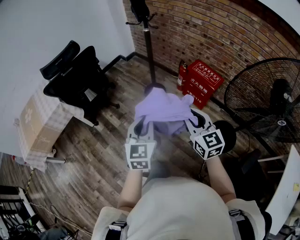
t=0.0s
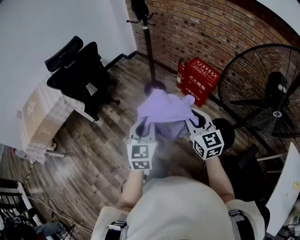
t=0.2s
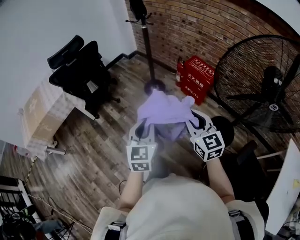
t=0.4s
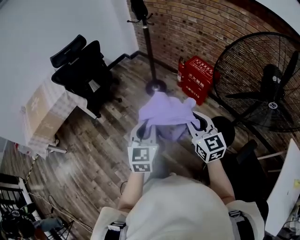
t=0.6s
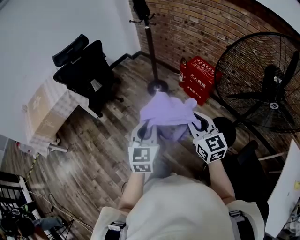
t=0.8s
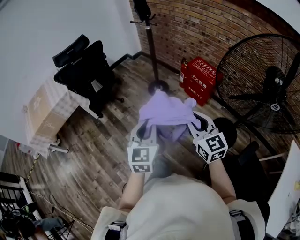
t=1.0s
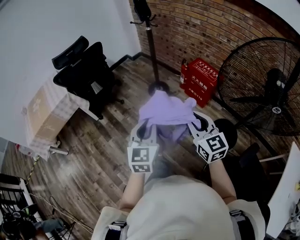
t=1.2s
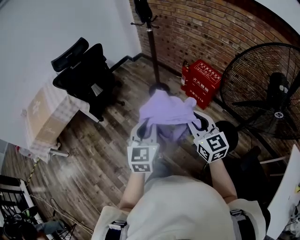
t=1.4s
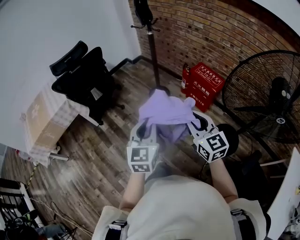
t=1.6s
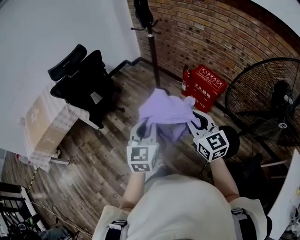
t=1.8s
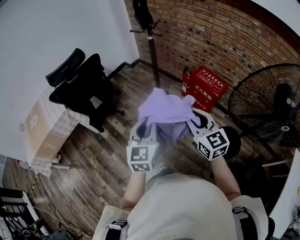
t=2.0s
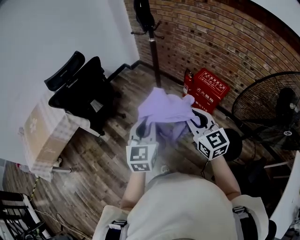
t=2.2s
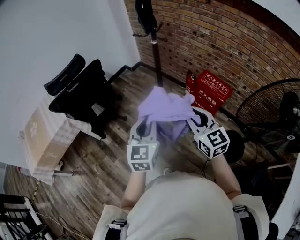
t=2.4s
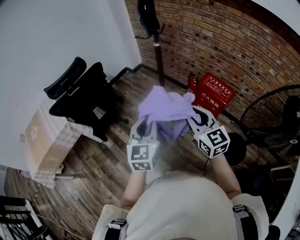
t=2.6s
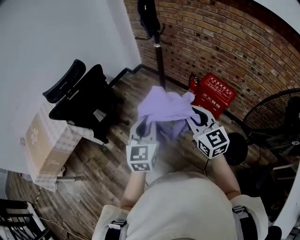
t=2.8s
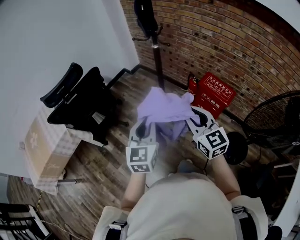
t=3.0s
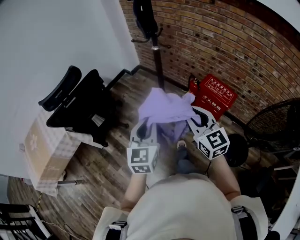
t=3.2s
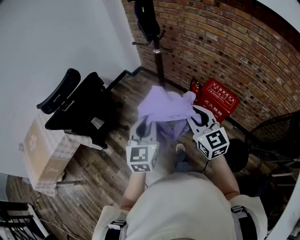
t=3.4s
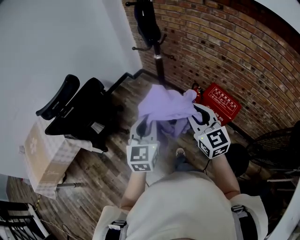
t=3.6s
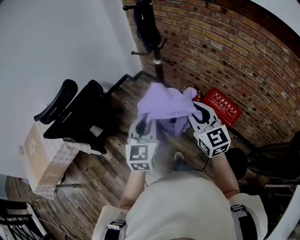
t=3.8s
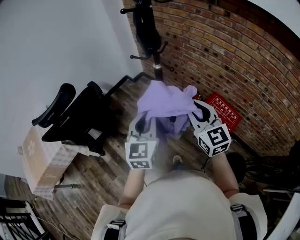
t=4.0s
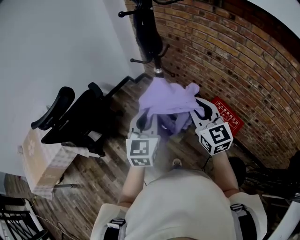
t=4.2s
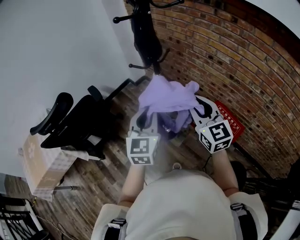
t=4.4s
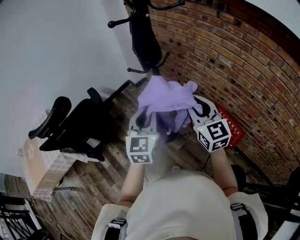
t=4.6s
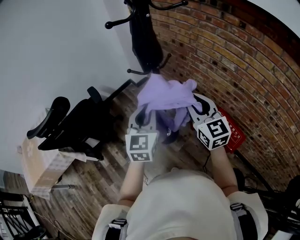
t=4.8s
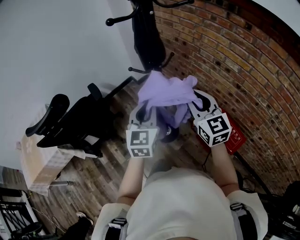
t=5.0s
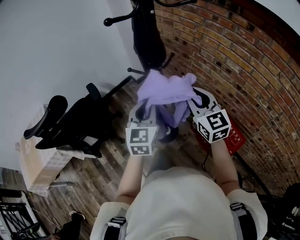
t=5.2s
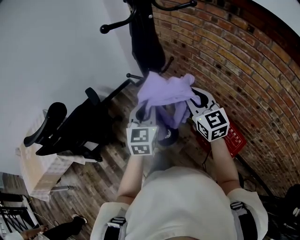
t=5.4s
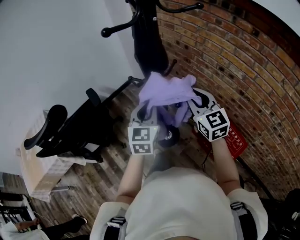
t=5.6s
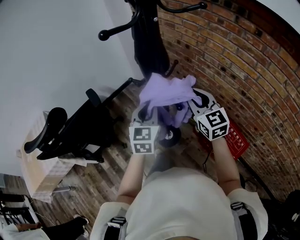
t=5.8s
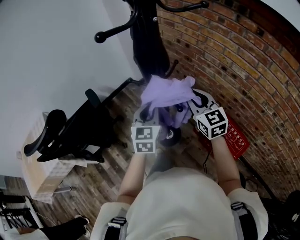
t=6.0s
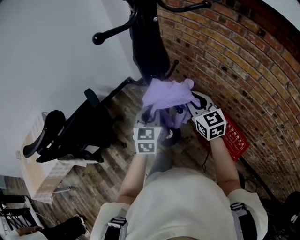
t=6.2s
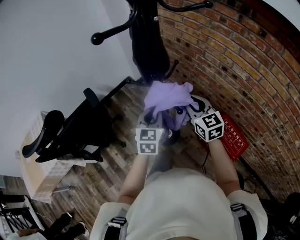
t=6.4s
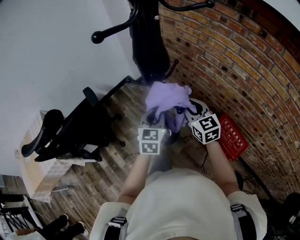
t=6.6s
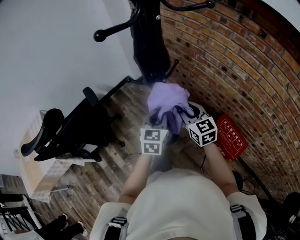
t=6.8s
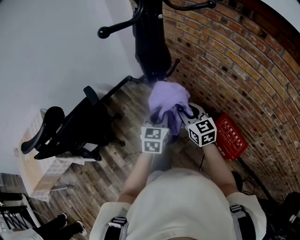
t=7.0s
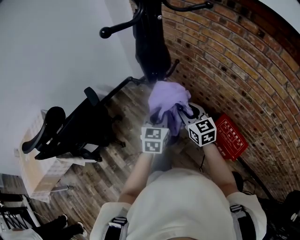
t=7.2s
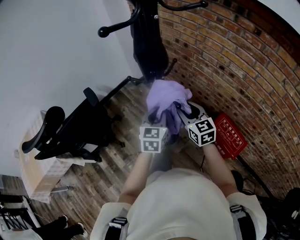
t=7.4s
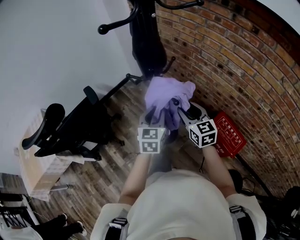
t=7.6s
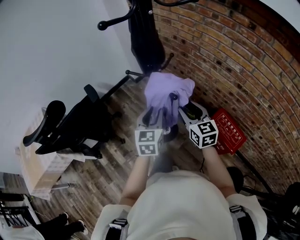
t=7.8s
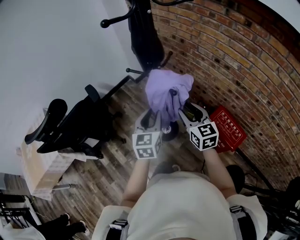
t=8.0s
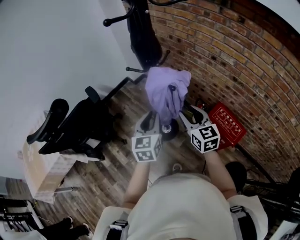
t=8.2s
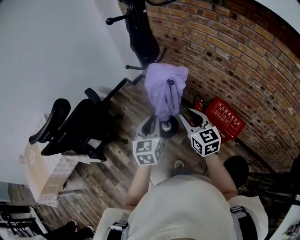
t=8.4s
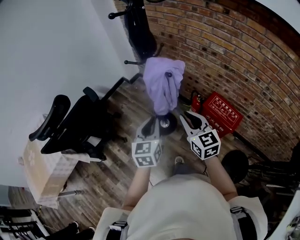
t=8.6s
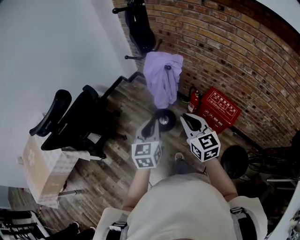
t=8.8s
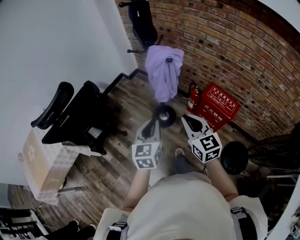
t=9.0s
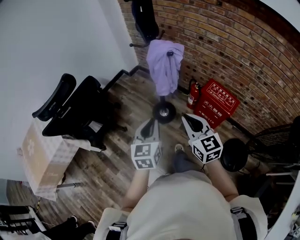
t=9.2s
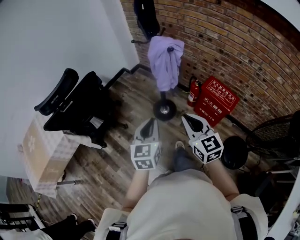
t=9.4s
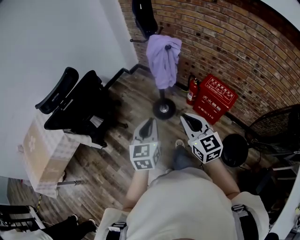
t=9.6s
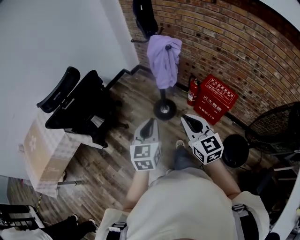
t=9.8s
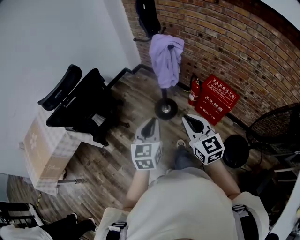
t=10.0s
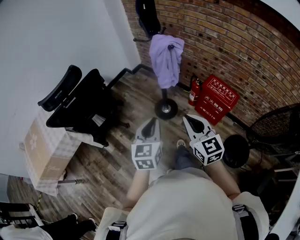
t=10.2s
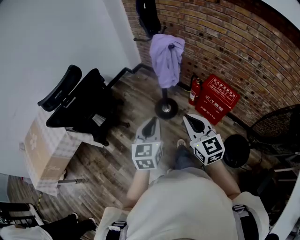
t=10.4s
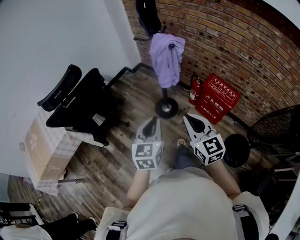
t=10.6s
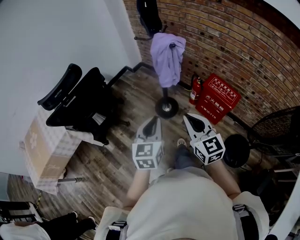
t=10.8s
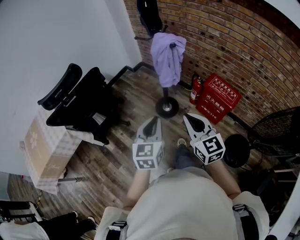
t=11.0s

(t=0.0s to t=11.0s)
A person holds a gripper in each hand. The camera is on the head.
t=0.0s - t=1.6s: Both grippers travel together backward, approximately 5 cm.
t=1.6s - t=3.2s: The grippers both shift forward by approximately 25 cm.
t=3.2s - t=4.8s: Both grippers move forward, roughly 30 cm.
t=4.8s - t=6.2s: The two grippers go about 15 cm forward and downward.
t=6.2s - t=7.8s: The two grippers go about 5 cm backward. The right gripper opens up.
t=7.8s - t=9.4s: The grippers both shift backward by some 30 cm. The right gripper closes.
t=9.4s - t=11.0s: The grippers make only small movements.

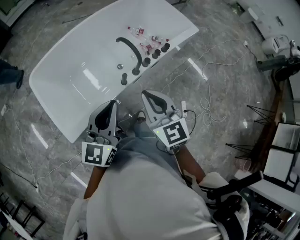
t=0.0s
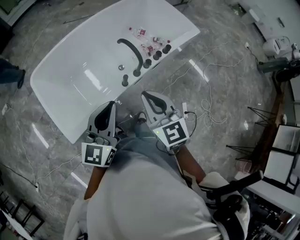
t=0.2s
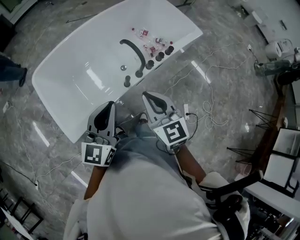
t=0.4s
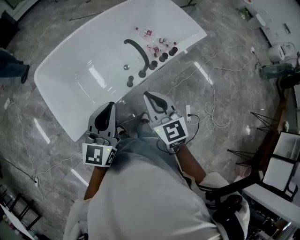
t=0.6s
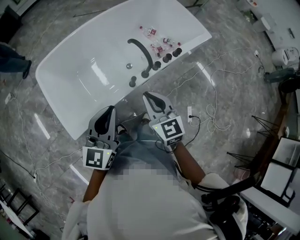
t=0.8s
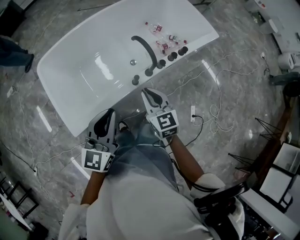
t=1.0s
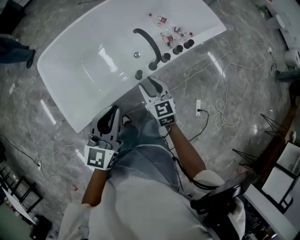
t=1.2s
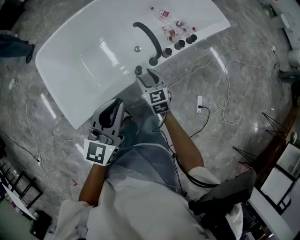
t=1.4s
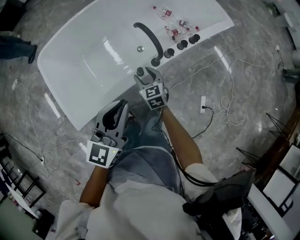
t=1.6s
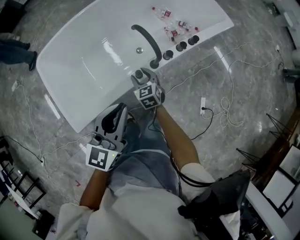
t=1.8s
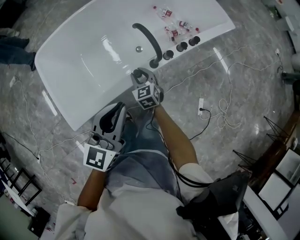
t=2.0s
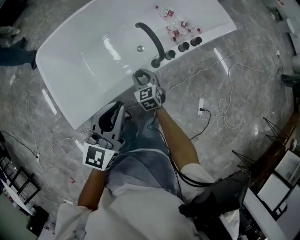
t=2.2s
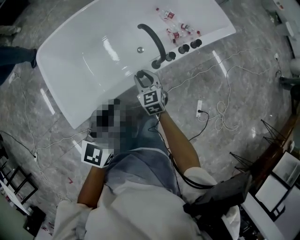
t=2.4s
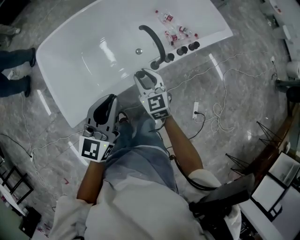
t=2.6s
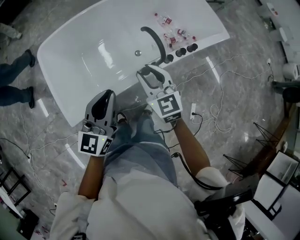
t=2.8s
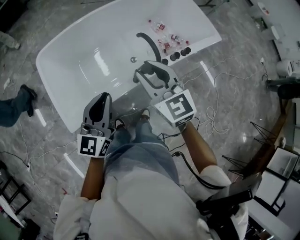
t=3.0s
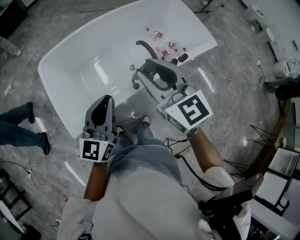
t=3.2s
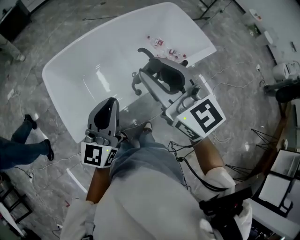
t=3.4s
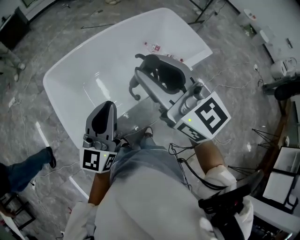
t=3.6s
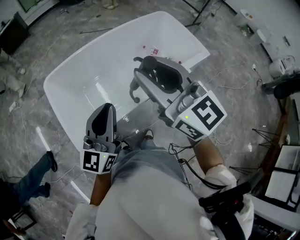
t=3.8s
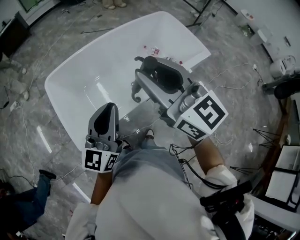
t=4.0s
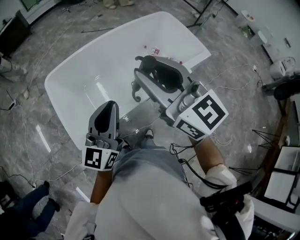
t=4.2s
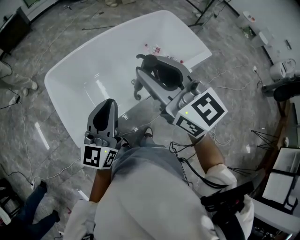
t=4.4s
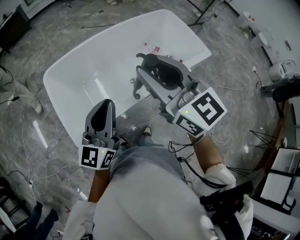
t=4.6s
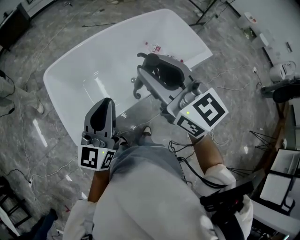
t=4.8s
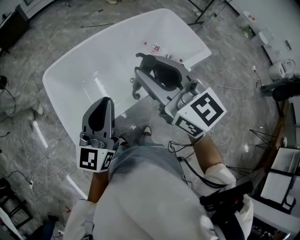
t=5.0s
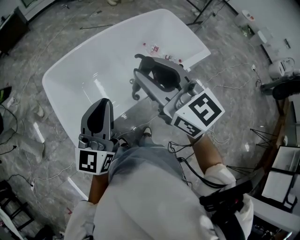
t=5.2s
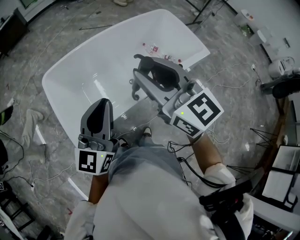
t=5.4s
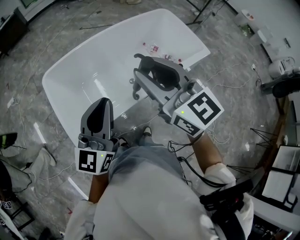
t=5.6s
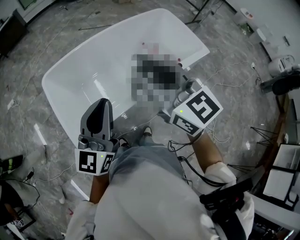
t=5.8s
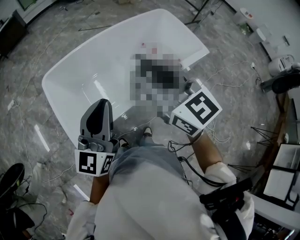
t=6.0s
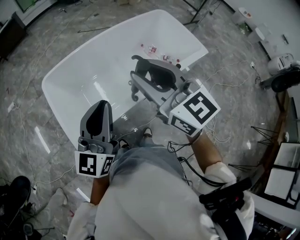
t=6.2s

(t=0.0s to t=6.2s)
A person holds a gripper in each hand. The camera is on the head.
t=0.0s - t=1.6s: The right gripper travels downward and forward by roughly 50 cm, changes its angle by roughly 20 degrees, and opens its fingers. Meanwhile the left gripper shifts approximately 25 cm downward and forward.
t=1.6s - t=3.2s: The left gripper heads upward, to the left and backward, covering roughly 20 cm; the right gripper shifts about 50 cm upward, and rotates some 30 degrees.
t=3.2s - t=4.6s: The two grippers go some 15 cm upward.
t=4.6s - t=6.2s: There are only small adjustments of the grippers.

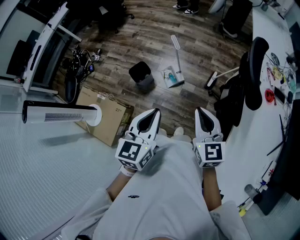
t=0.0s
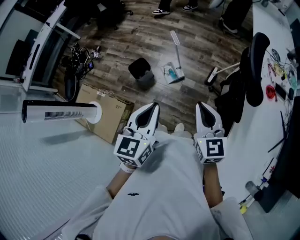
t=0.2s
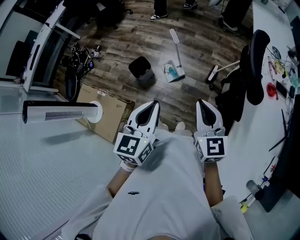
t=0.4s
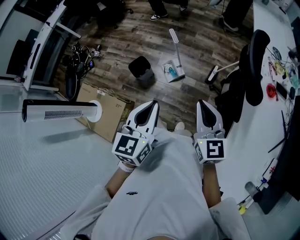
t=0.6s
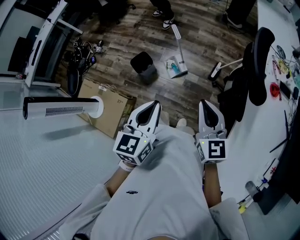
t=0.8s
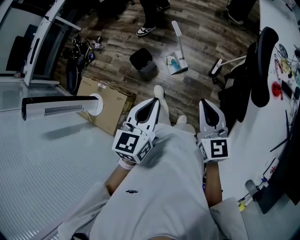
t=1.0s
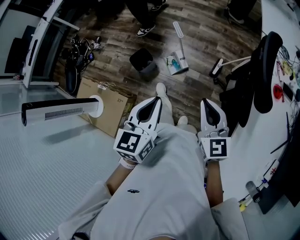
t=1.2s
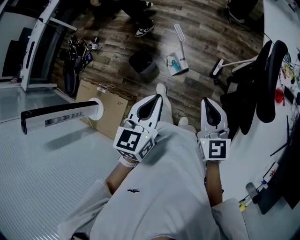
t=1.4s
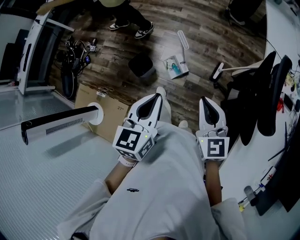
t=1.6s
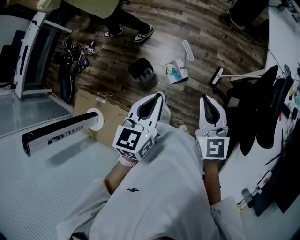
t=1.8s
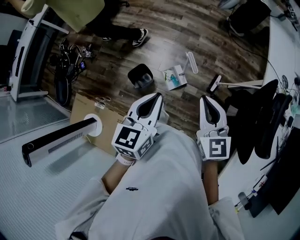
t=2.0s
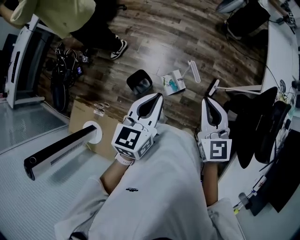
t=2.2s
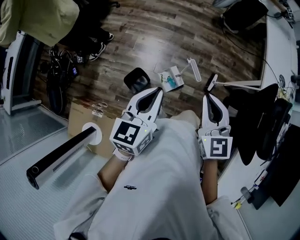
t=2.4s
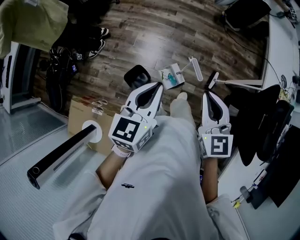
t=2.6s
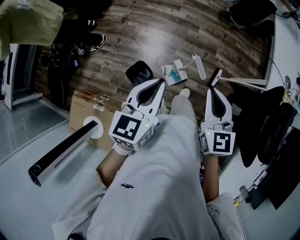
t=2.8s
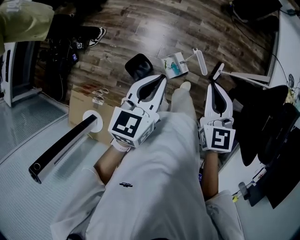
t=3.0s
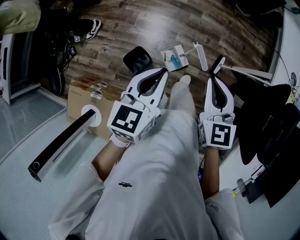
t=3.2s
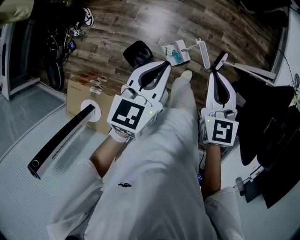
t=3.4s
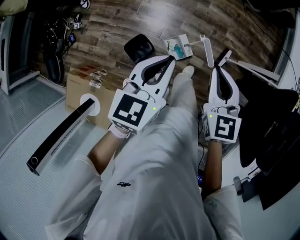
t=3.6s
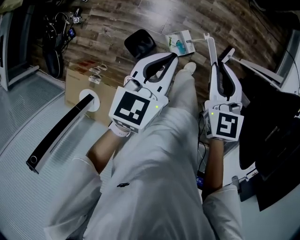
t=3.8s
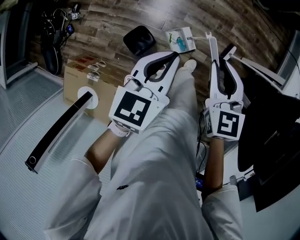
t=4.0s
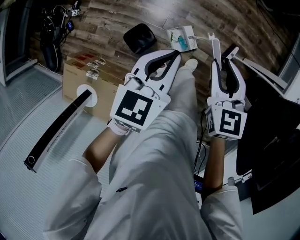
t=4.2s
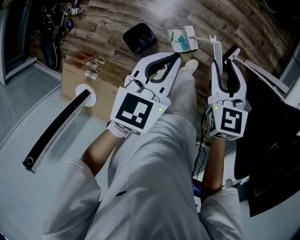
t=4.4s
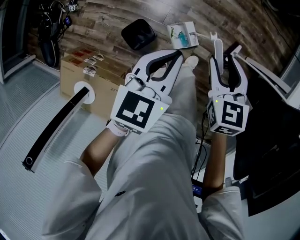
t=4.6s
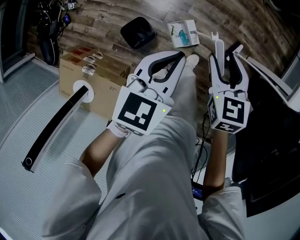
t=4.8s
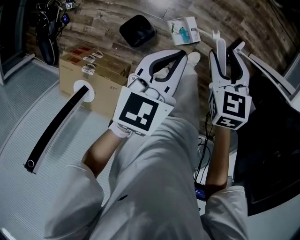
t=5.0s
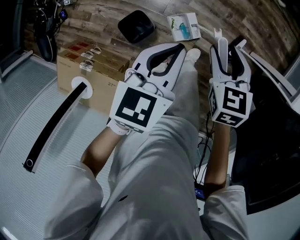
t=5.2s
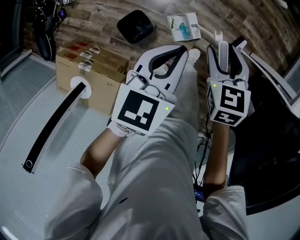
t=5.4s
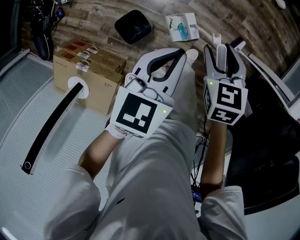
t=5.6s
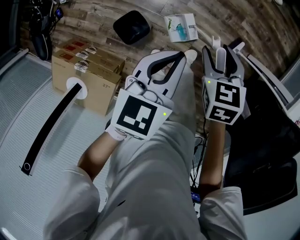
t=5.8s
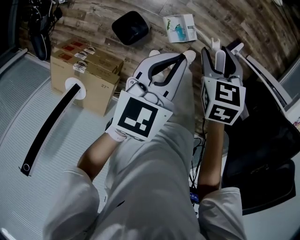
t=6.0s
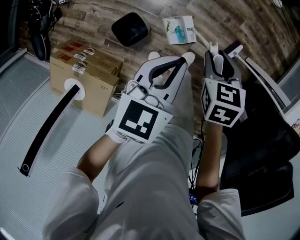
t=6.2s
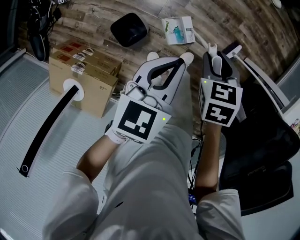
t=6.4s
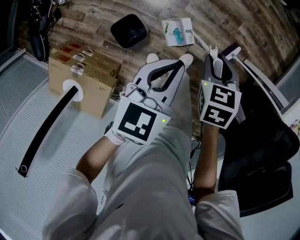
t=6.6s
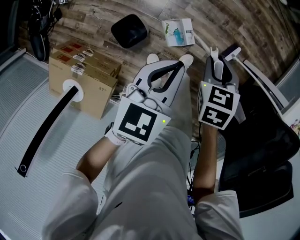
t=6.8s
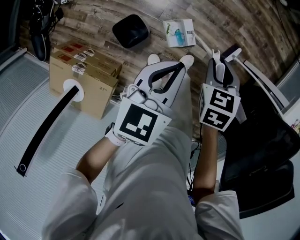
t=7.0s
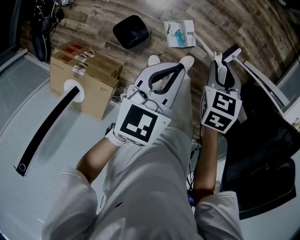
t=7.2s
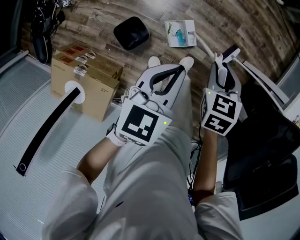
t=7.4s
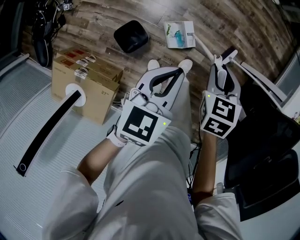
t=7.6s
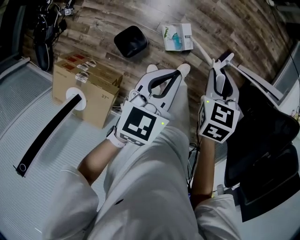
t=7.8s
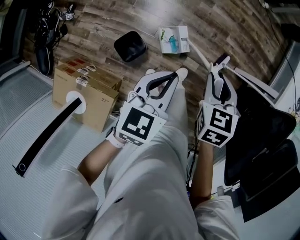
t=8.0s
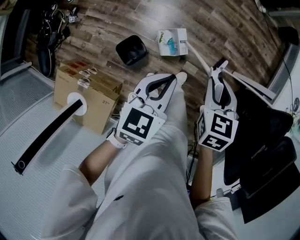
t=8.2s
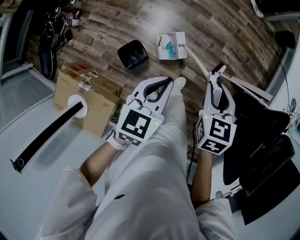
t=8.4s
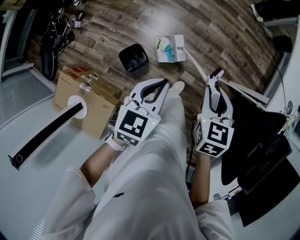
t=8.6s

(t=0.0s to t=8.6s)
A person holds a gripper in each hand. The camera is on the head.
t=0.0s - t=1.4s: The grippers both shift forward by approximately 10 cm.
t=1.4s - t=2.8s: Both grippers travel together forward and to the left, some 35 cm.
t=2.8s - t=4.4s: Both grippers travel together downward and forward, approximately 20 cm. The right gripper opens its fingers.
t=4.4s - t=5.8s: Both grippers travel together downward, some 10 cm.
t=5.8s - t=7.2s: The right gripper closes up.
t=7.2s - t=8.6s: The right gripper heads upward, covering some 20 cm. Meanwhile the left gripper moves upward and backward, roughly 15 cm.
